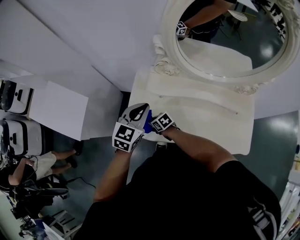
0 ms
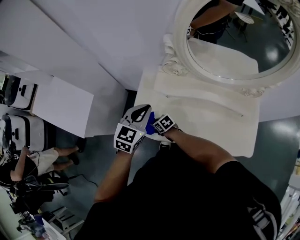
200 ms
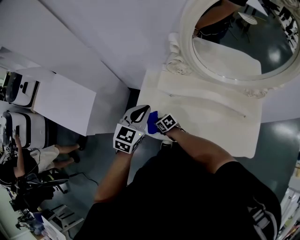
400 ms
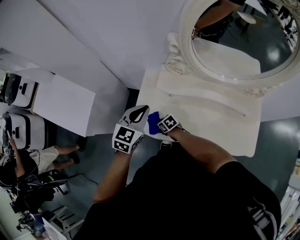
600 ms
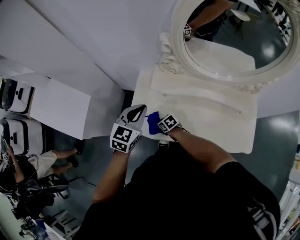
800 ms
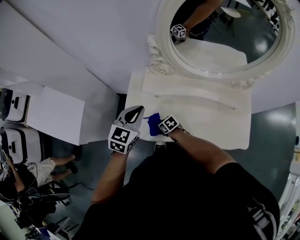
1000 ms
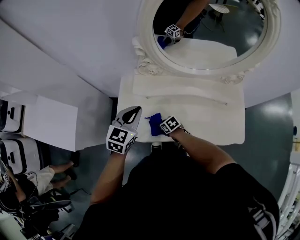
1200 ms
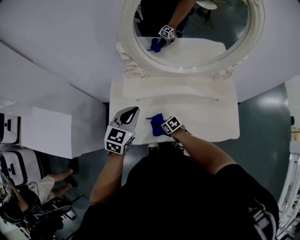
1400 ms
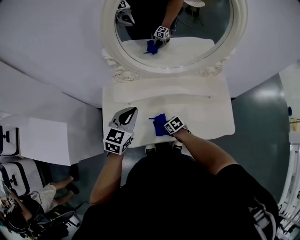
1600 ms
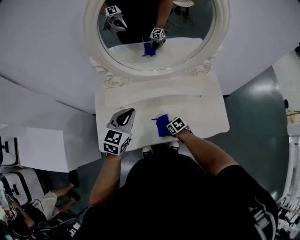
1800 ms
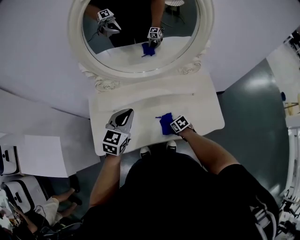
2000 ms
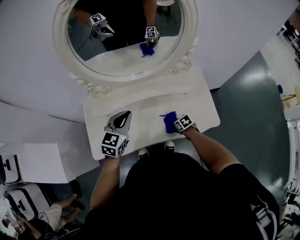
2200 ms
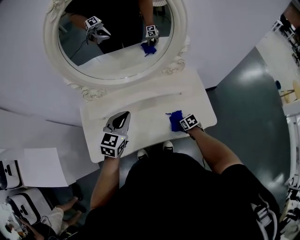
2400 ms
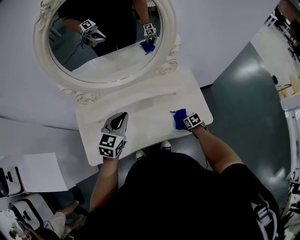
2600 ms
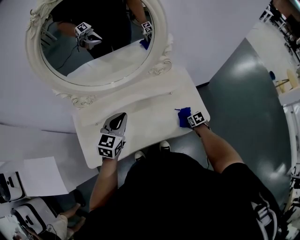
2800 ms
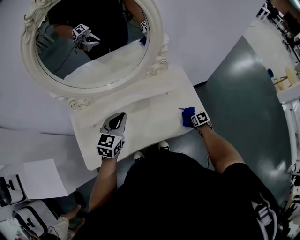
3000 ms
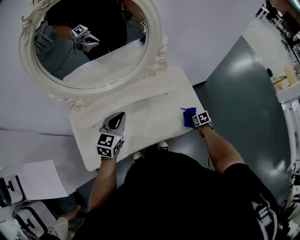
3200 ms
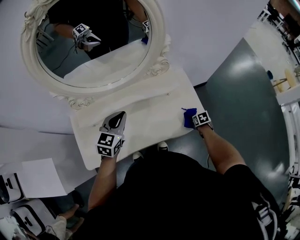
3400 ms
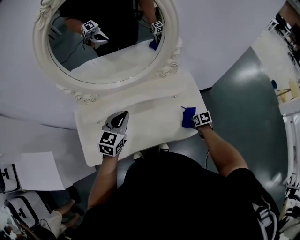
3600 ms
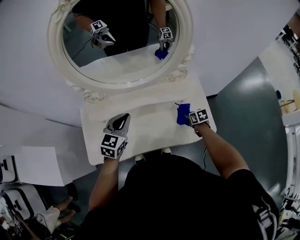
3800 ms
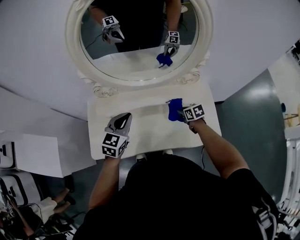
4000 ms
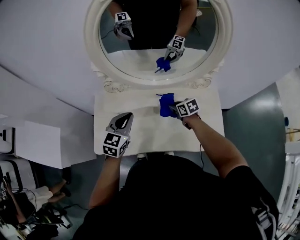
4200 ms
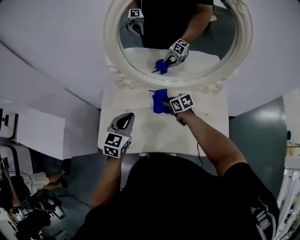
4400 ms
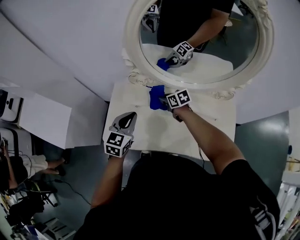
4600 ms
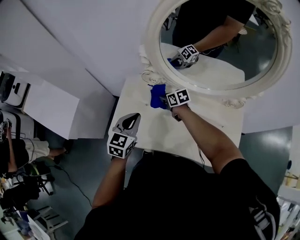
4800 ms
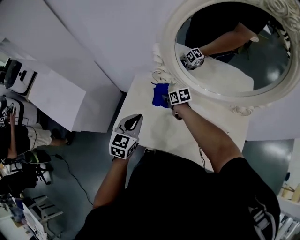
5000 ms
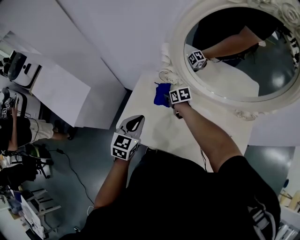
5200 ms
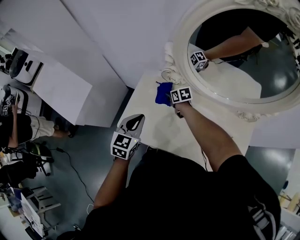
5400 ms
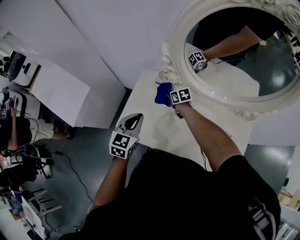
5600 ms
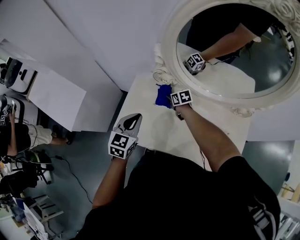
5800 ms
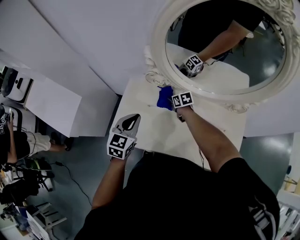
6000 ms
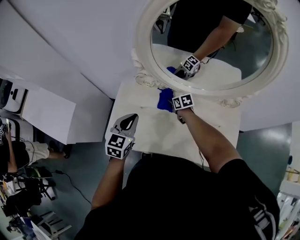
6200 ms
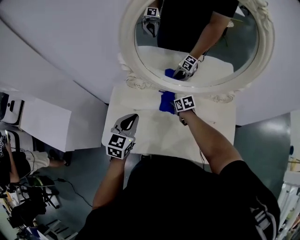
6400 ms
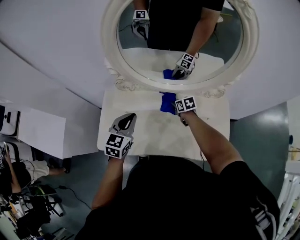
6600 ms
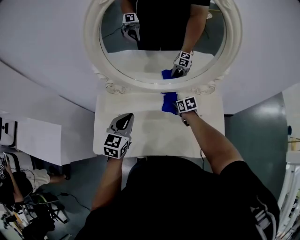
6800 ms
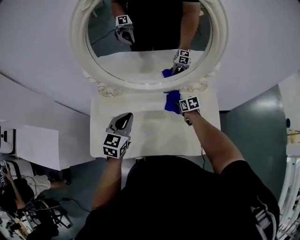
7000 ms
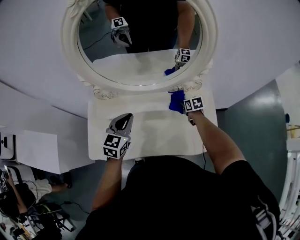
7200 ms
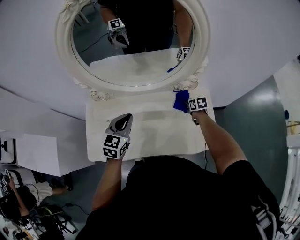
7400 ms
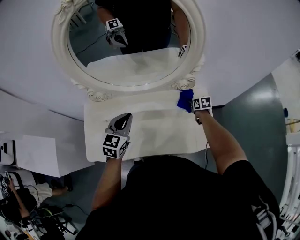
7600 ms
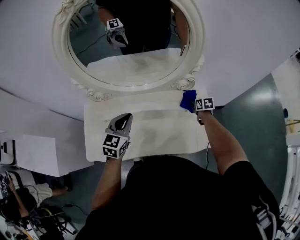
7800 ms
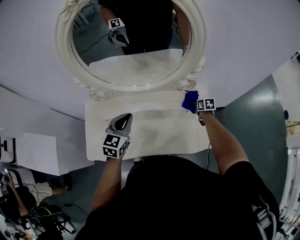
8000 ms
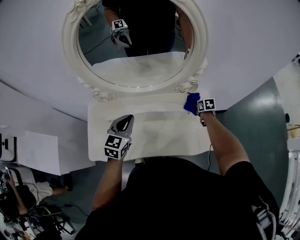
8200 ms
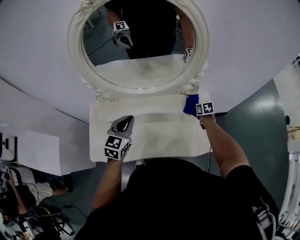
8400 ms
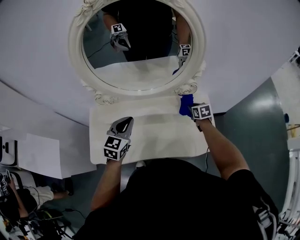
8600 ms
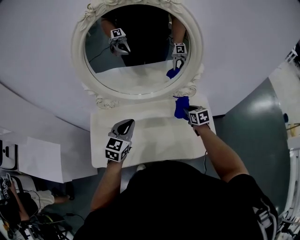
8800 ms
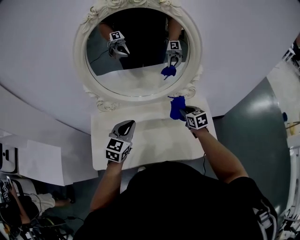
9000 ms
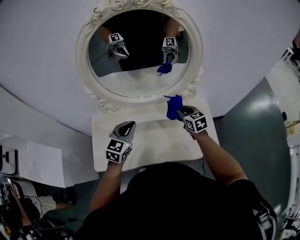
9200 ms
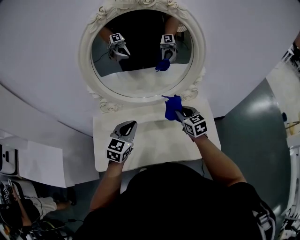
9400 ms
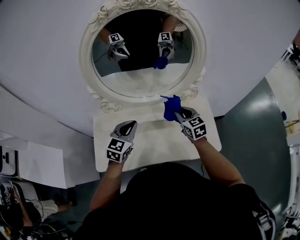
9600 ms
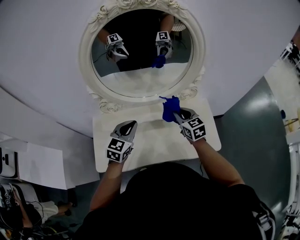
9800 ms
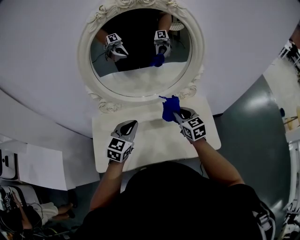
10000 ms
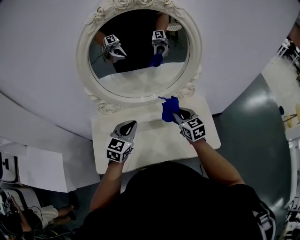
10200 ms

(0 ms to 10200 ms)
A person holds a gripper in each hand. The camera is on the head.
0 ms - 1400 ms: The left gripper shifts about 5 cm to the right, while the right gripper goes some 20 cm to the right and backward.
1400 ms - 3000 ms: The left gripper shifts by some 25 cm. Meanwhile the right gripper moves about 50 cm, and swivels about 40 degrees.
3000 ms - 4400 ms: The right gripper changes place by approximately 50 cm, and changes its angle by some 40 degrees. Meanwhile the left gripper shifts by roughly 20 cm, and changes its angle by roughly 20 degrees.
4400 ms - 5800 ms: The right gripper goes about 20 cm to the left, forward and downward. The left gripper shifts some 10 cm to the left.
5800 ms - 7200 ms: The left gripper shifts by some 25 cm, and changes its angle by approximately 20 degrees. Meanwhile the right gripper ends up roughly 40 cm from where it was, and swivels roughly 30 degrees.
7200 ms - 8800 ms: The right gripper is displaced upward by some 10 cm, and goes to the right and returns, approximately 10 cm each way.
8800 ms - 10200 ms: The right gripper goes about 20 cm upward, to the left and backward.

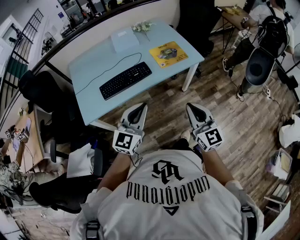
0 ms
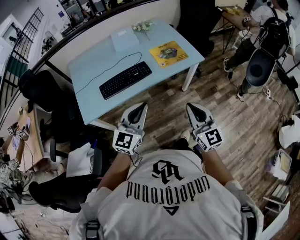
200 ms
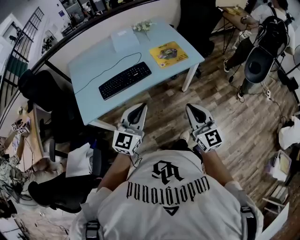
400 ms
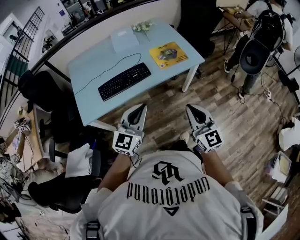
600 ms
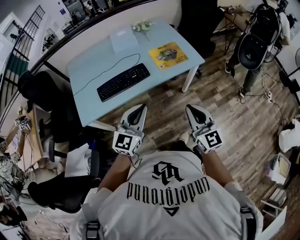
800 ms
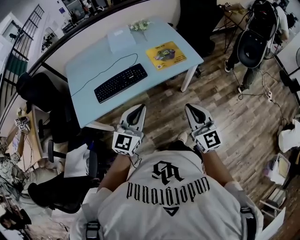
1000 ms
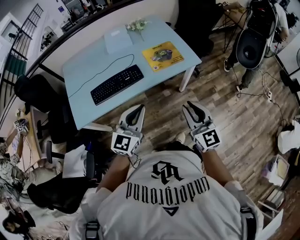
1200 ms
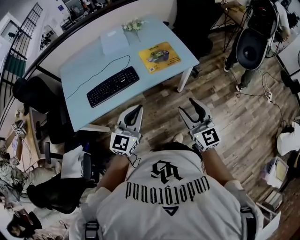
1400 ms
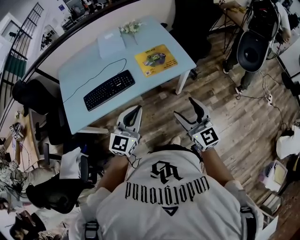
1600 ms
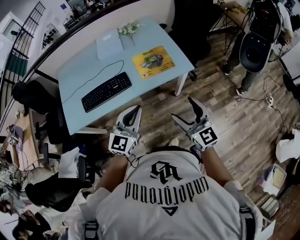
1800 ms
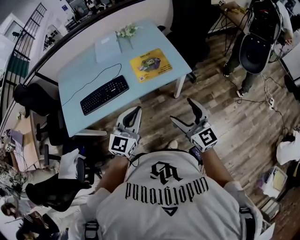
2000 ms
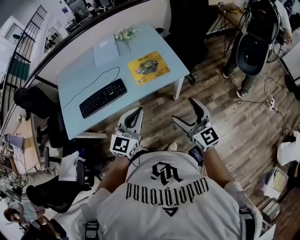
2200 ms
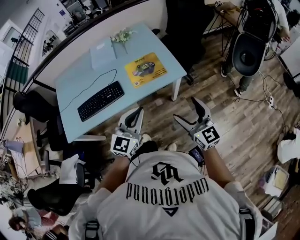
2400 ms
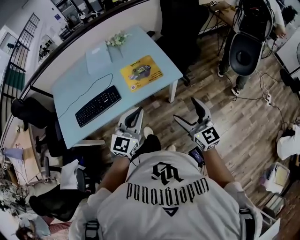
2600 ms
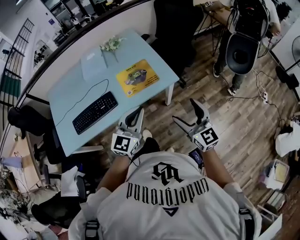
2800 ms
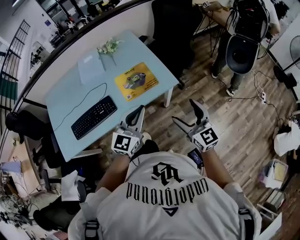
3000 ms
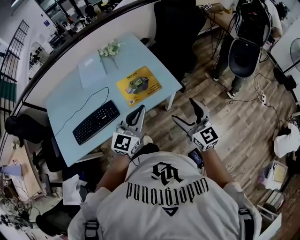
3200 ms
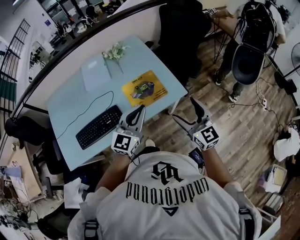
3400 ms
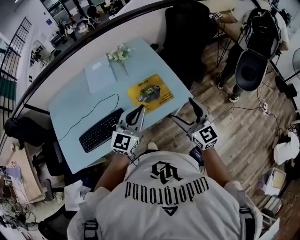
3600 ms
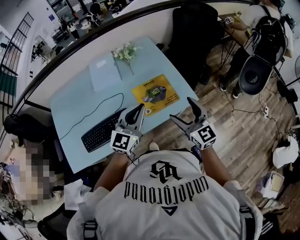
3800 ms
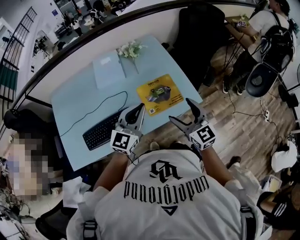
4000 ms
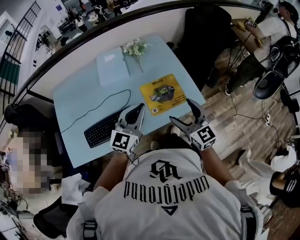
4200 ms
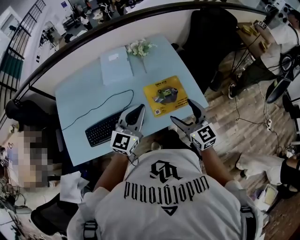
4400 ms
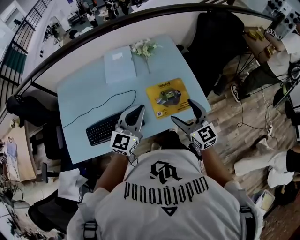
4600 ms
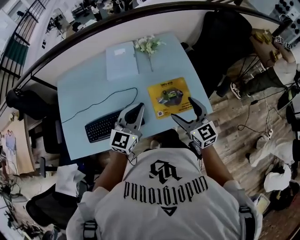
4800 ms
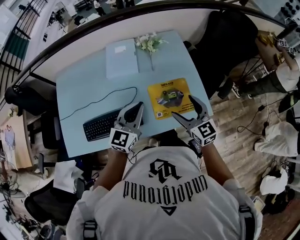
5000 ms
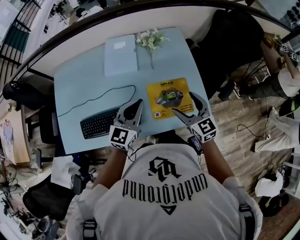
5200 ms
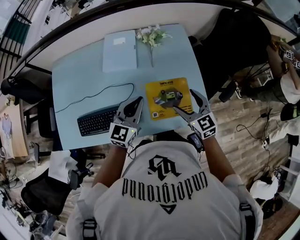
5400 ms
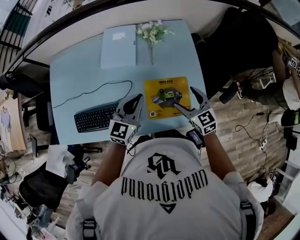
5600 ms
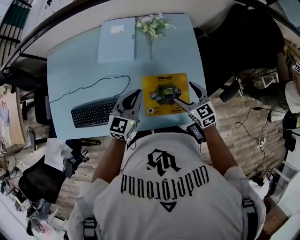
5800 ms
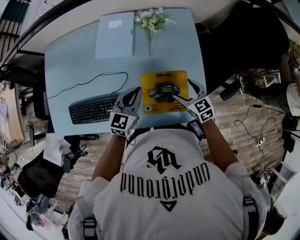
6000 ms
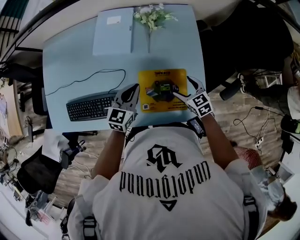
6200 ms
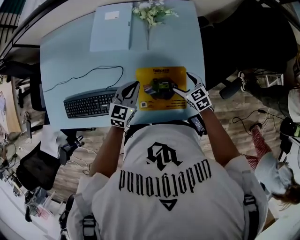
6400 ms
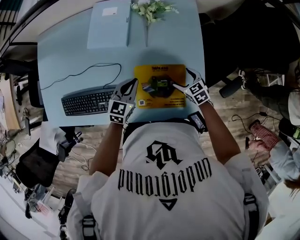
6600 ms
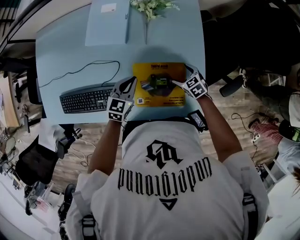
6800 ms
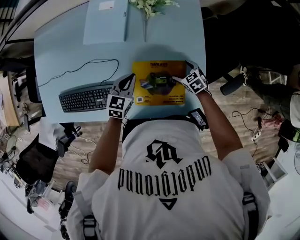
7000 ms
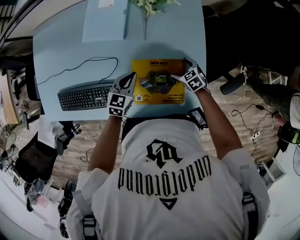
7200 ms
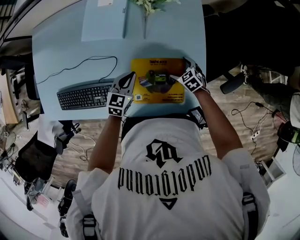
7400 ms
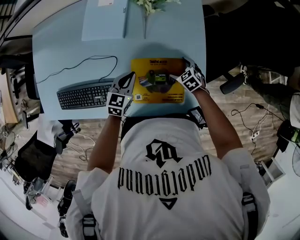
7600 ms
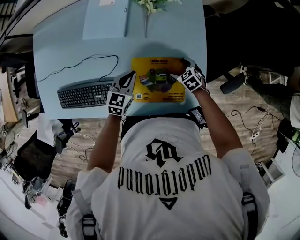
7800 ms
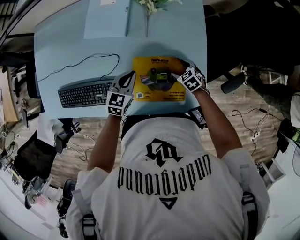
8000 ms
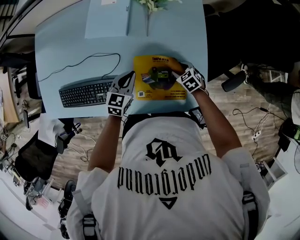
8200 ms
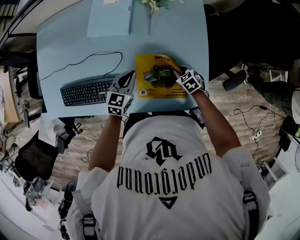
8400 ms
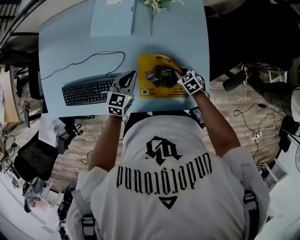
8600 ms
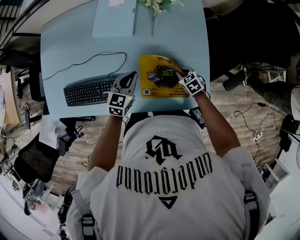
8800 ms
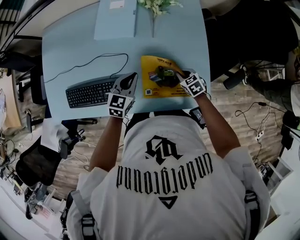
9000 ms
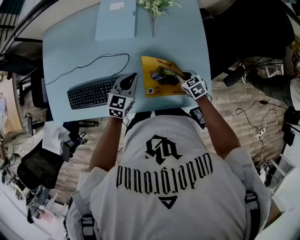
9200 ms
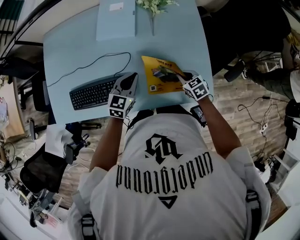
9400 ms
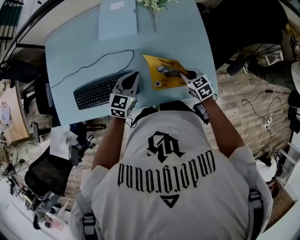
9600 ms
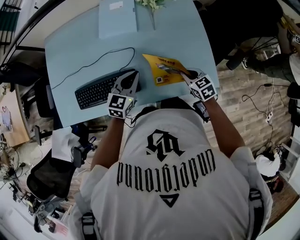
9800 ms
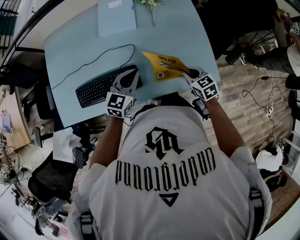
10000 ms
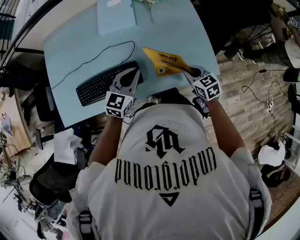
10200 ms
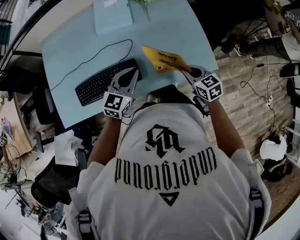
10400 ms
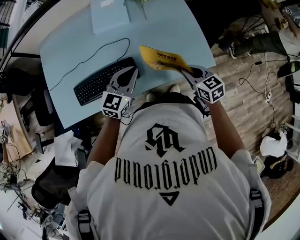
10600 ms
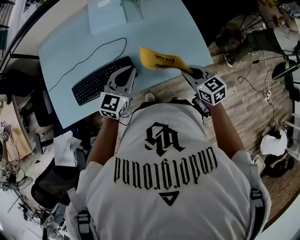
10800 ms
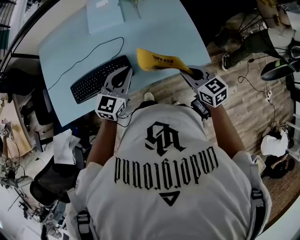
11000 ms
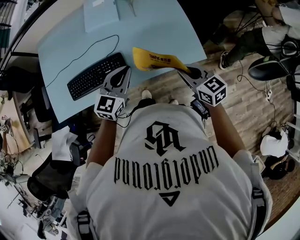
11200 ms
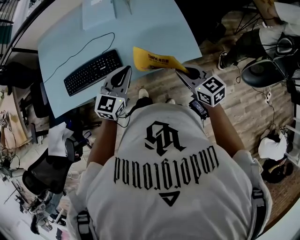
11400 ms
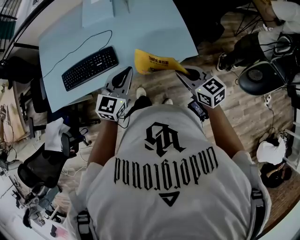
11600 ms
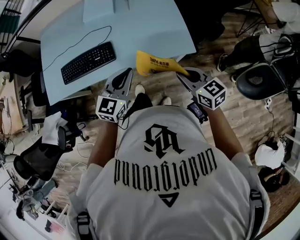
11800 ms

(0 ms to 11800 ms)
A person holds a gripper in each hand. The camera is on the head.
0 ms - 1400 ms: The two grippers go roughly 15 cm forward and to the right. The right gripper opens.
1400 ms - 3000 ms: Both grippers move to the right and forward, some 25 cm. The right gripper opens.
3000 ms - 4400 ms: Both grippers travel together to the left and forward, some 25 cm.
4400 ms - 6000 ms: Both grippers travel together forward and downward, some 25 cm. The left gripper rotates about 30 degrees, while the right gripper rotates about 30 degrees.
6000 ms - 7400 ms: Both grippers travel together downward, approximately 15 cm. The right gripper rotates about 30 degrees.
7400 ms - 8800 ms: The right gripper shifts by approximately 5 cm, and closes its fingers. Meanwhile the left gripper changes place by roughly 5 cm.
8800 ms - 10400 ms: The left gripper moves backward, upward and to the left, some 20 cm, and rotates approximately 20 degrees. The right gripper travels upward, backward and to the left by approximately 30 cm, and rotates roughly 30 degrees.
10400 ms - 11800 ms: The right gripper is displaced backward, to the right and upward by some 25 cm. Meanwhile the left gripper heads backward and to the right, covering about 25 cm.

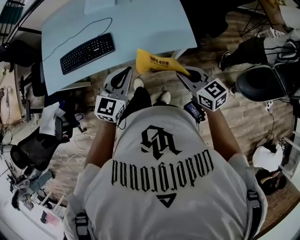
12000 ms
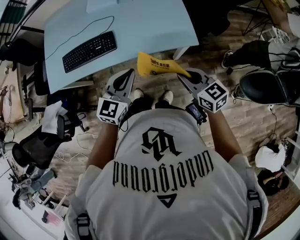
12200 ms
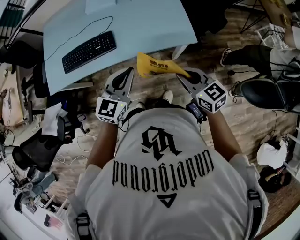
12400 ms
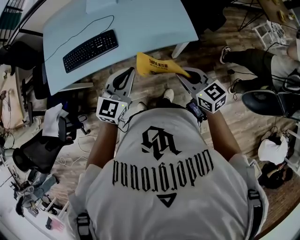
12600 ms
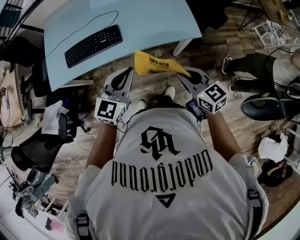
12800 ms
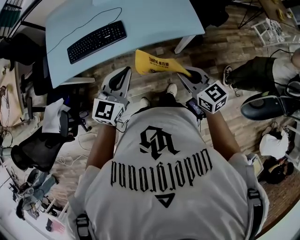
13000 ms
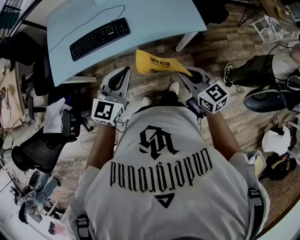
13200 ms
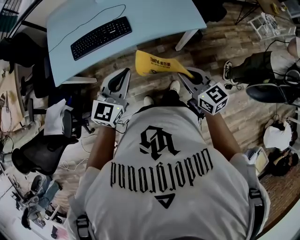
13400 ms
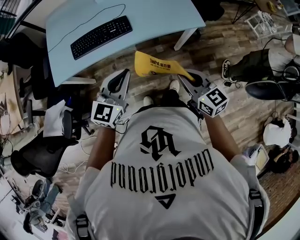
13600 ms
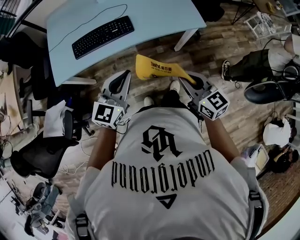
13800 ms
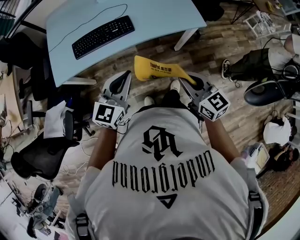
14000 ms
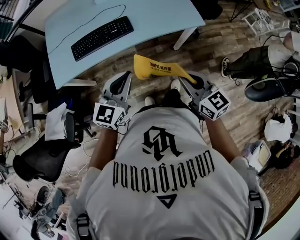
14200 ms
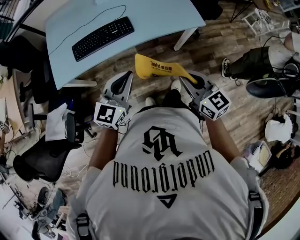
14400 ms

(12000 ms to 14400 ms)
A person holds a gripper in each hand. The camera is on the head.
12000 ms - 13200 ms: Both grippers travel together to the left and backward, about 20 cm.
13200 ms - 14400 ms: The left gripper travels to the left by about 5 cm, while the right gripper heads to the left and backward, covering roughly 10 cm.
